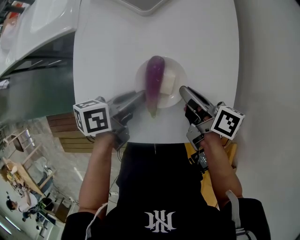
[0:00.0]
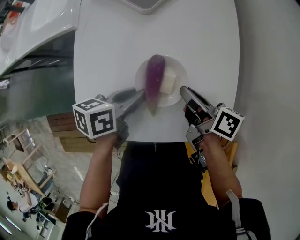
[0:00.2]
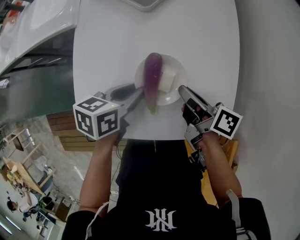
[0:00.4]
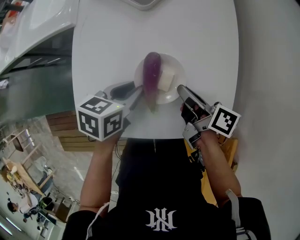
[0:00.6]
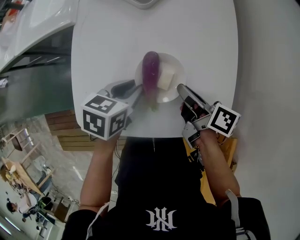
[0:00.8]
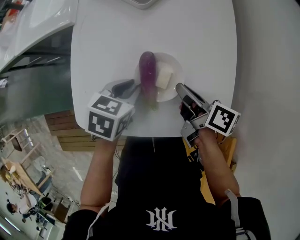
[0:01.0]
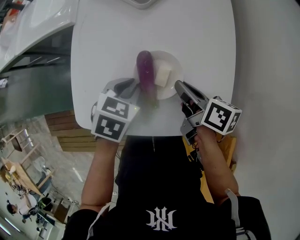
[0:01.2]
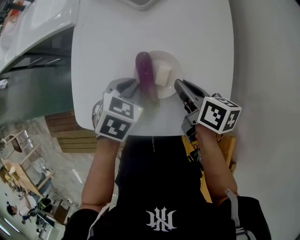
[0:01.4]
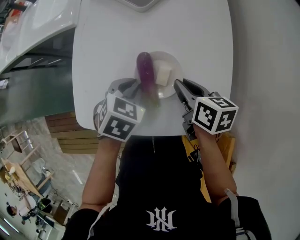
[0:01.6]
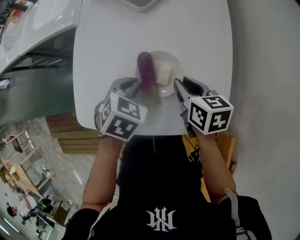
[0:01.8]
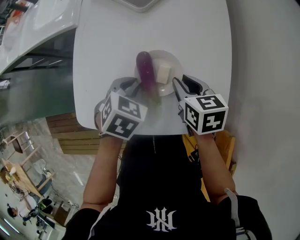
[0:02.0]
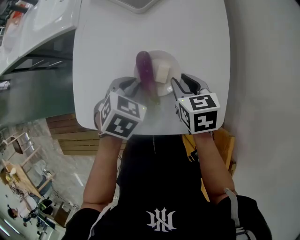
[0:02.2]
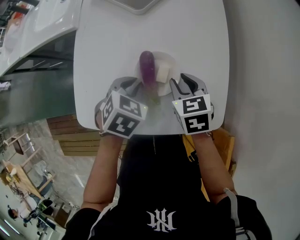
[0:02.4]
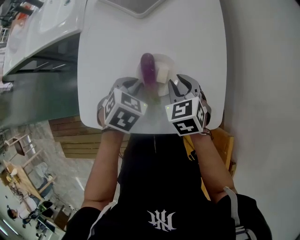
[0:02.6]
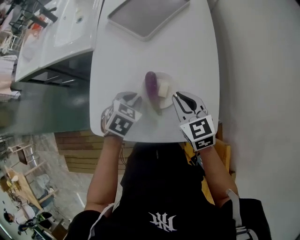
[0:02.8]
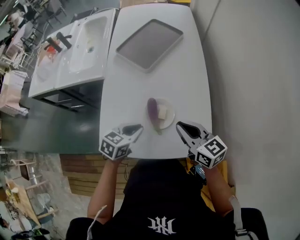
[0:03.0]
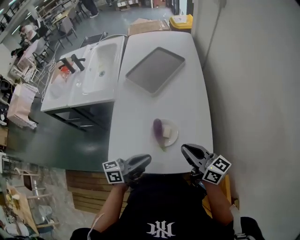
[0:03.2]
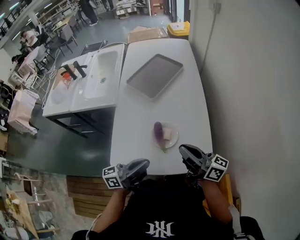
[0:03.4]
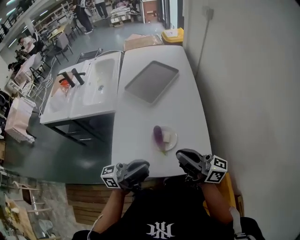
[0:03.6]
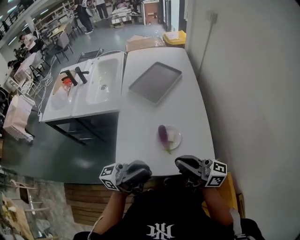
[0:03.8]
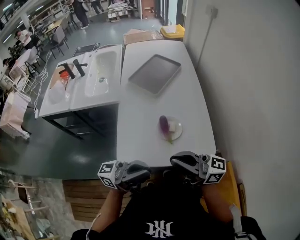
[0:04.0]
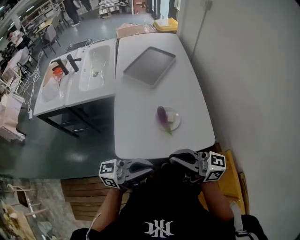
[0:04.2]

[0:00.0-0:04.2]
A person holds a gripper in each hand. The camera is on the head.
0:01.4 to 0:02.8: The right gripper heads upward, covering some 5 cm, and rotates around the line of its fingers by about 50 degrees, counterclockwise from behind.
0:02.8 to 0:04.2: The right gripper shifts approximately 25 cm upward, and angles its fingers upward, by roughly 50 degrees.

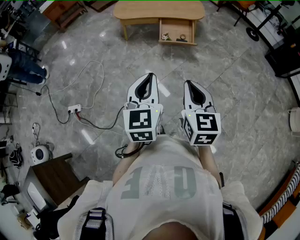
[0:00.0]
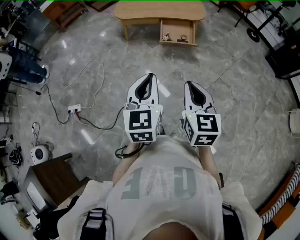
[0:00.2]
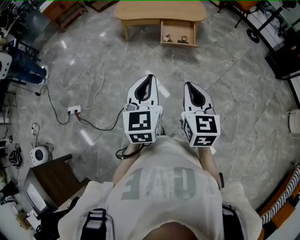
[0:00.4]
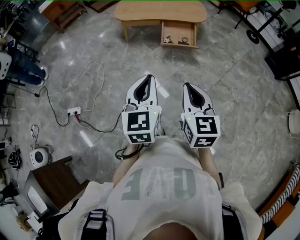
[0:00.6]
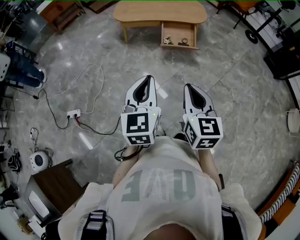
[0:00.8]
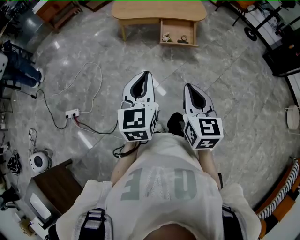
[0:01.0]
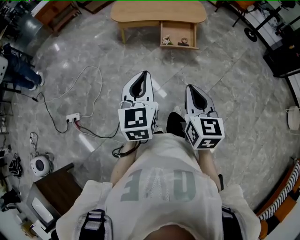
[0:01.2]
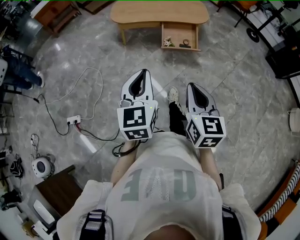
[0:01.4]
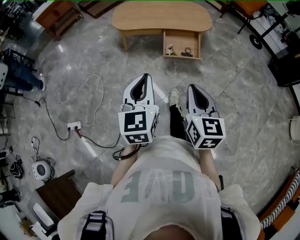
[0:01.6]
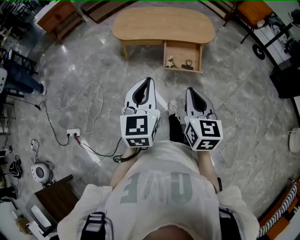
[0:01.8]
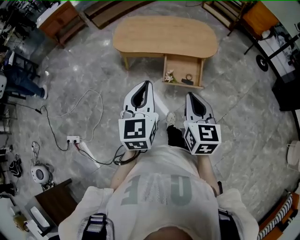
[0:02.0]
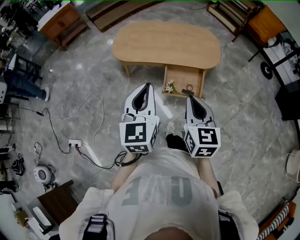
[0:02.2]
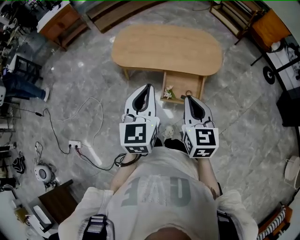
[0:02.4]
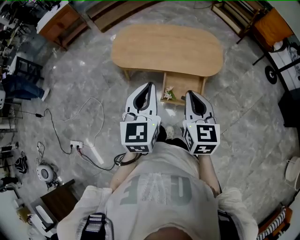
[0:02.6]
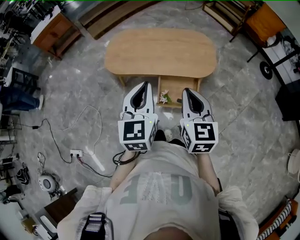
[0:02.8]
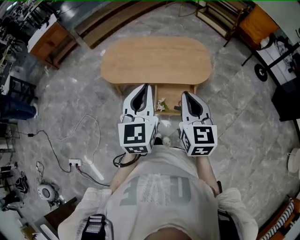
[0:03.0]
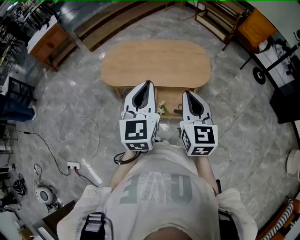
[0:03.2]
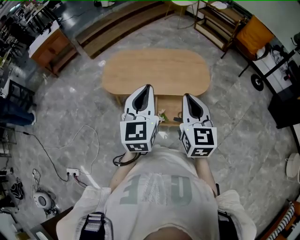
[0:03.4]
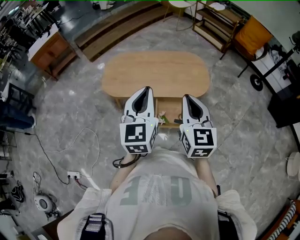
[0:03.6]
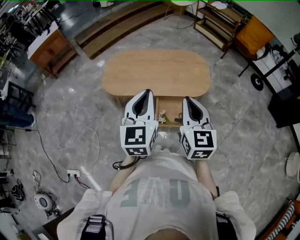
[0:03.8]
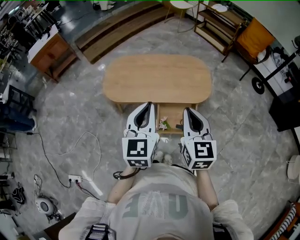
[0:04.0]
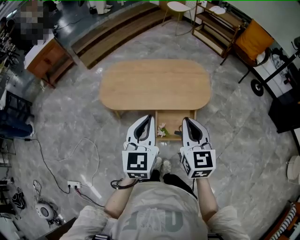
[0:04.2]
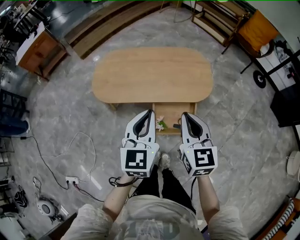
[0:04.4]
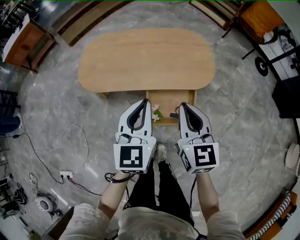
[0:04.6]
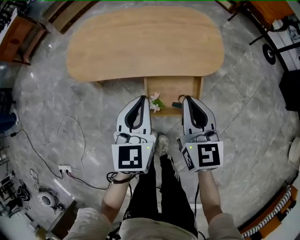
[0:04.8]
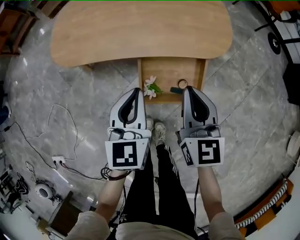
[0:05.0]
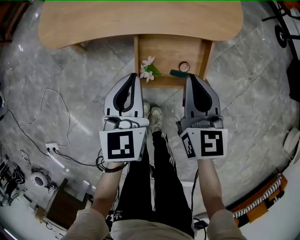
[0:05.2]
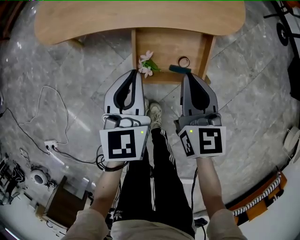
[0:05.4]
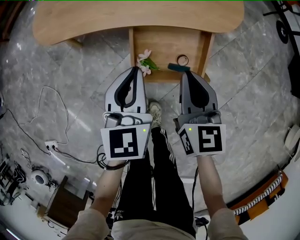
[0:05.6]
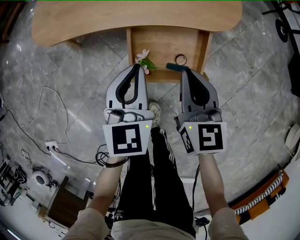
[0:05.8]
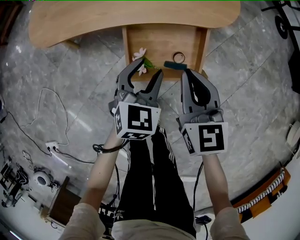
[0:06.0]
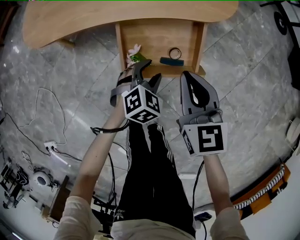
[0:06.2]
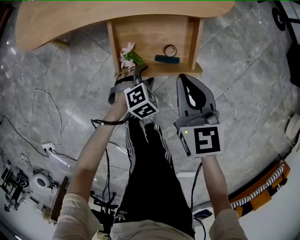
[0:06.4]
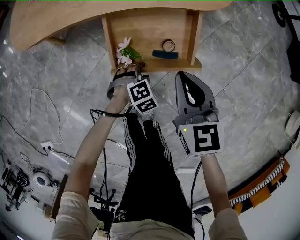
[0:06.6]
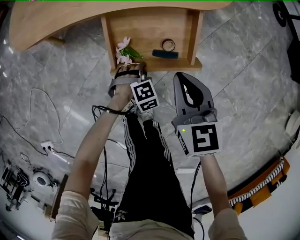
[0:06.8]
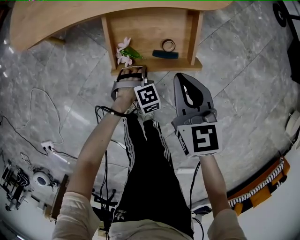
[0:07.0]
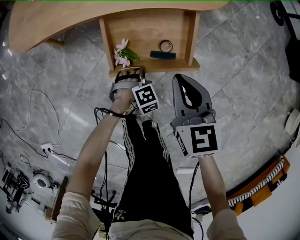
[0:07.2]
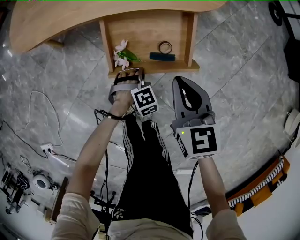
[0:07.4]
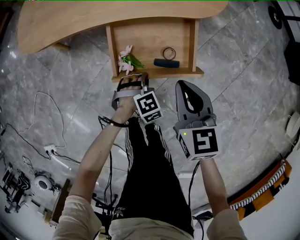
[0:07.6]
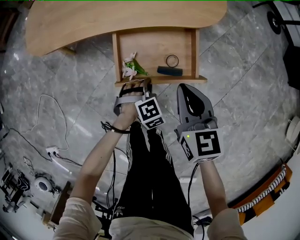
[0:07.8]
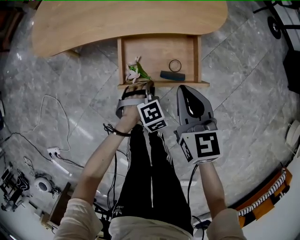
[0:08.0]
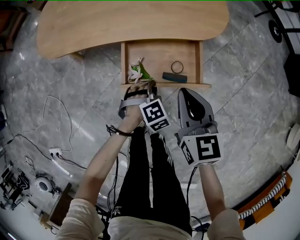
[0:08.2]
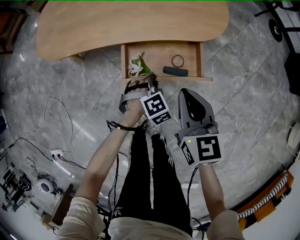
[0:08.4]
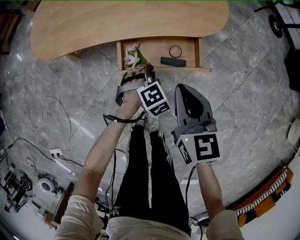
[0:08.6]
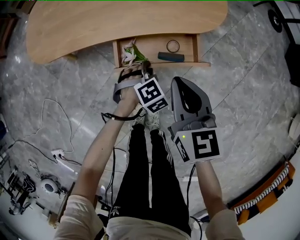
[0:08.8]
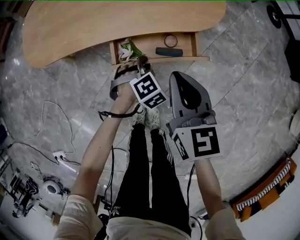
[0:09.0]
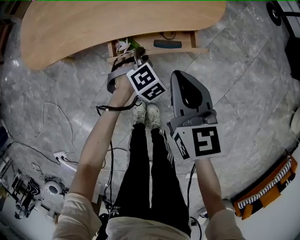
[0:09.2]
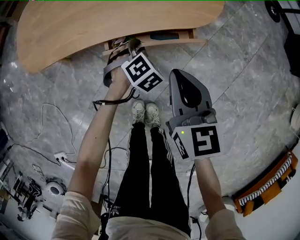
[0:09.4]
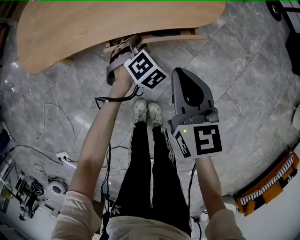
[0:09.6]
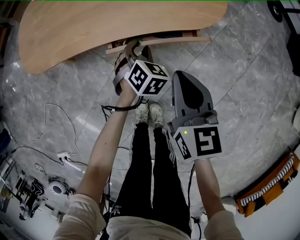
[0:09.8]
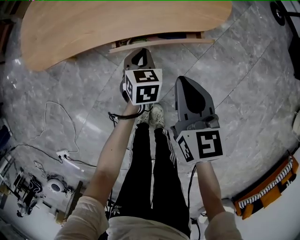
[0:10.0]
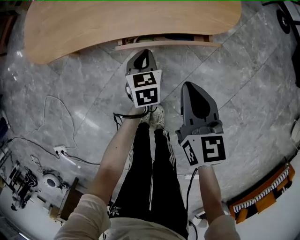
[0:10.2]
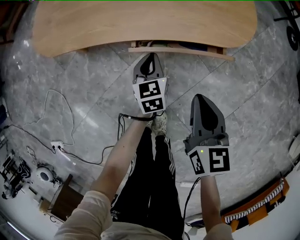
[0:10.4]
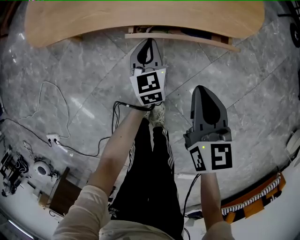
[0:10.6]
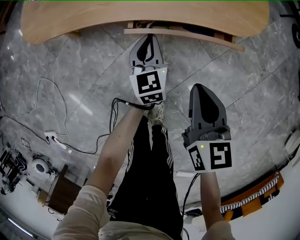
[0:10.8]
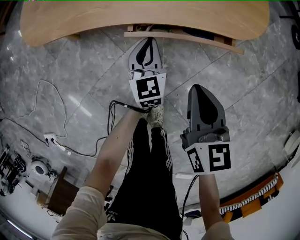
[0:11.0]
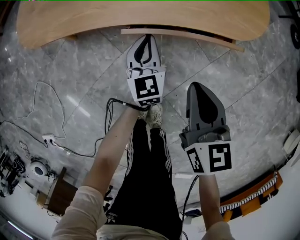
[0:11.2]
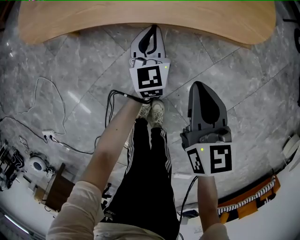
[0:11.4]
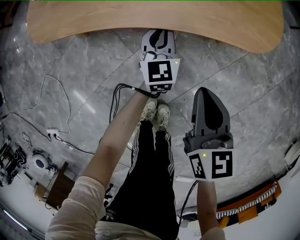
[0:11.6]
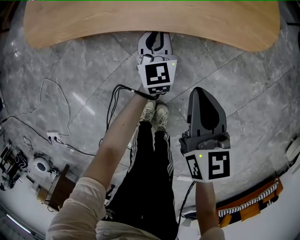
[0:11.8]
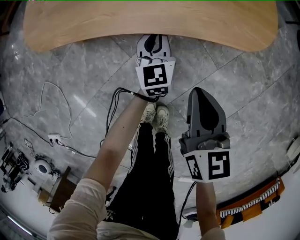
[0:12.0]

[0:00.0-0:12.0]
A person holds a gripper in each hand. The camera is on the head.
0:00.0 to 0:01.6: Both grippers move forward, some 20 cm.
0:01.6 to 0:03.0: The pair of grippers is taken forward, approximately 40 cm.
0:03.0 to 0:04.4: The left gripper shifts some 10 cm downward and forward, while the right gripper moves forward and downward, some 10 cm.
0:04.4 to 0:06.0: Both grippers travel together downward, some 35 cm. The left gripper rotates some 30 degrees, and opens up.
0:06.0 to 0:07.6: The left gripper goes approximately 20 cm downward, tilts its fingers about 30 degrees downward, and closes. Meanwhile the right gripper shifts by roughly 5 cm.
0:07.6 to 0:09.0: Both grippers travel together forward and upward, approximately 10 cm.
0:09.0 to 0:10.4: The left gripper shifts approximately 10 cm to the left and forward, and rolls counterclockwise, seen from behind, by some 70 degrees; the right gripper shifts roughly 5 cm downward.
0:10.4 to 0:12.0: The right gripper changes place by some 5 cm; the left gripper is displaced forward by some 5 cm.

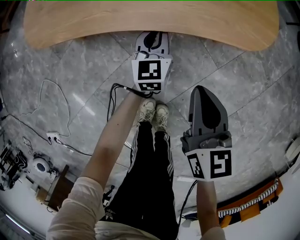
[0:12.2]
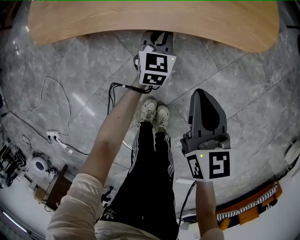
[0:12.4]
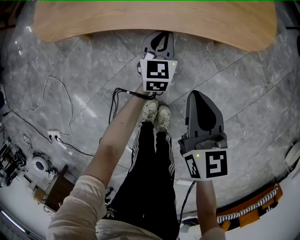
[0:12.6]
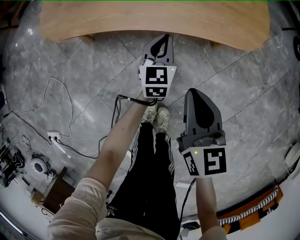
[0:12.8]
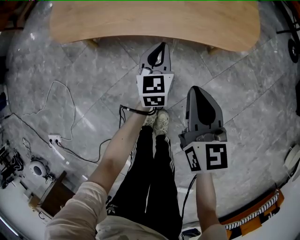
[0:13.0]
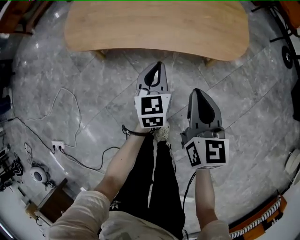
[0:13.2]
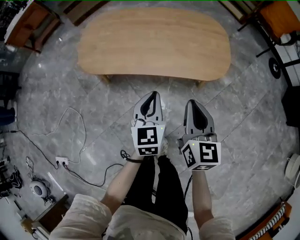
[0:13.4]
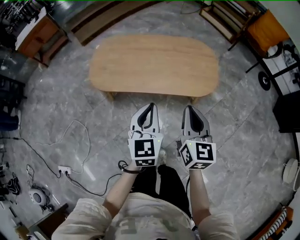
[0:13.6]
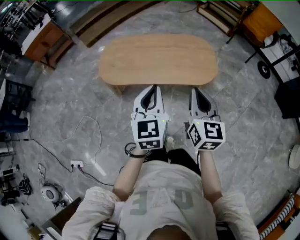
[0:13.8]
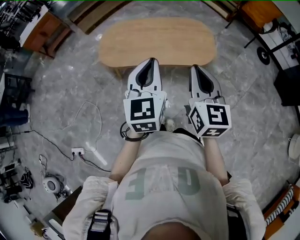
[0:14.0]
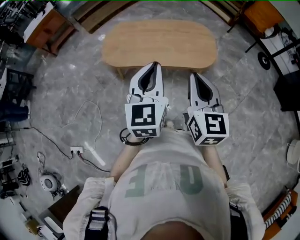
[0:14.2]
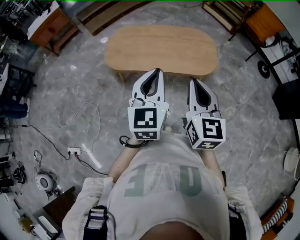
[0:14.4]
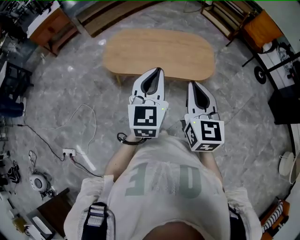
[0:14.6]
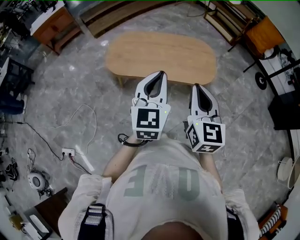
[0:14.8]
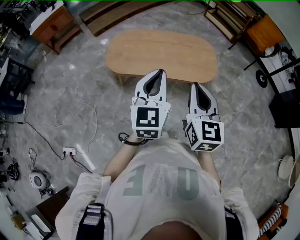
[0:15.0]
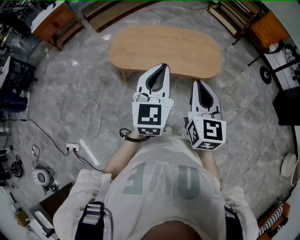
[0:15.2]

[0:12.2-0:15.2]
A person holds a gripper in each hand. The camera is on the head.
0:12.2 to 0:13.8: The two grippers go about 50 cm upward. The right gripper swivels some 20 degrees.
0:13.8 to 0:15.2: The left gripper moves upward, roughly 10 cm. Meanwhile the right gripper goes approximately 10 cm upward and backward.

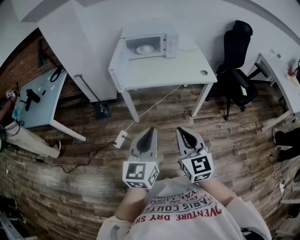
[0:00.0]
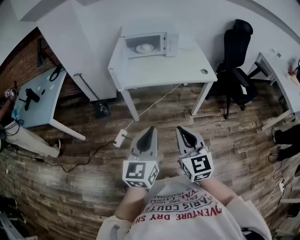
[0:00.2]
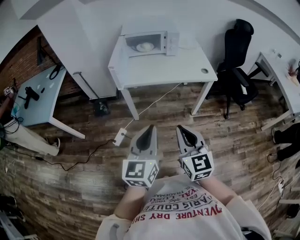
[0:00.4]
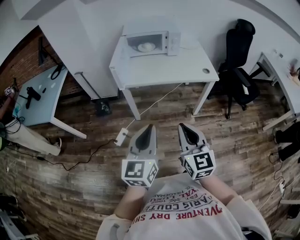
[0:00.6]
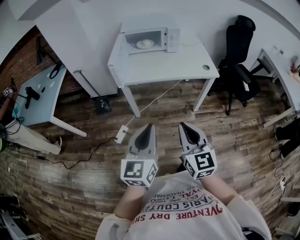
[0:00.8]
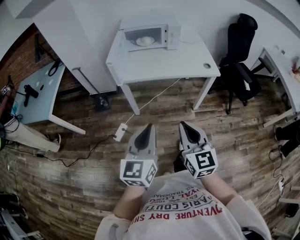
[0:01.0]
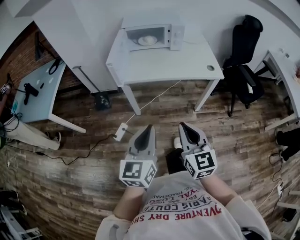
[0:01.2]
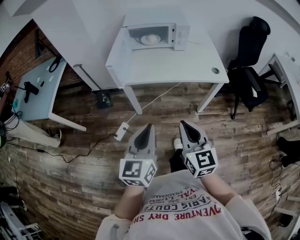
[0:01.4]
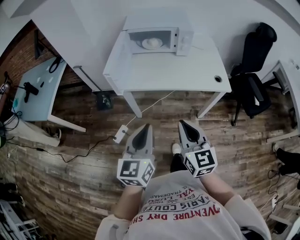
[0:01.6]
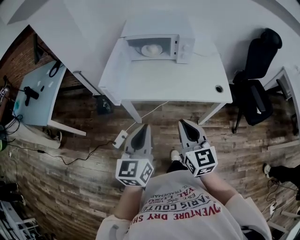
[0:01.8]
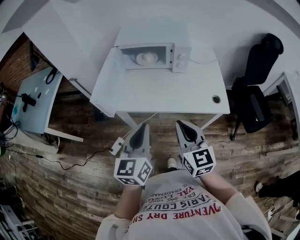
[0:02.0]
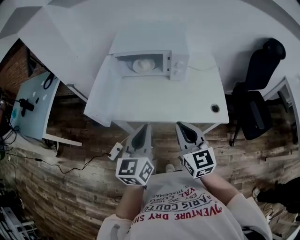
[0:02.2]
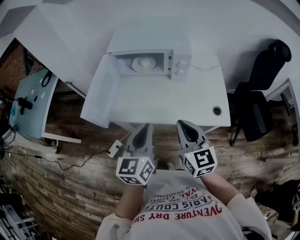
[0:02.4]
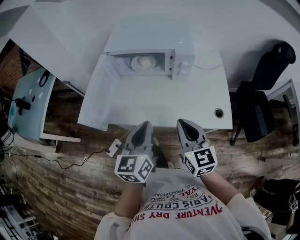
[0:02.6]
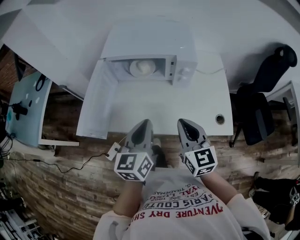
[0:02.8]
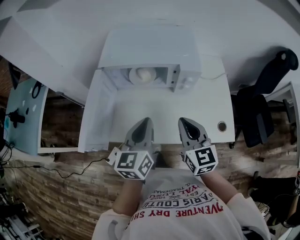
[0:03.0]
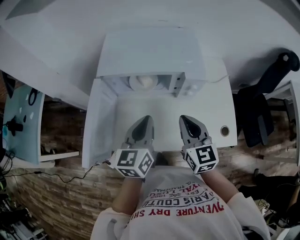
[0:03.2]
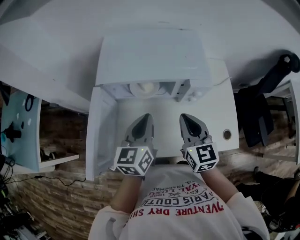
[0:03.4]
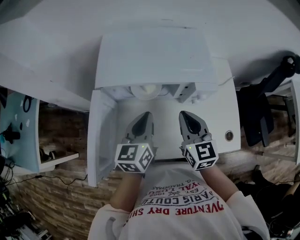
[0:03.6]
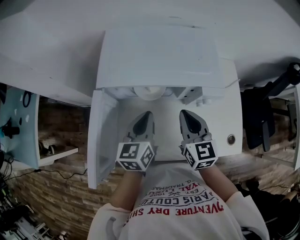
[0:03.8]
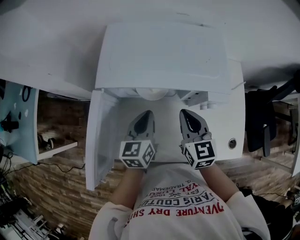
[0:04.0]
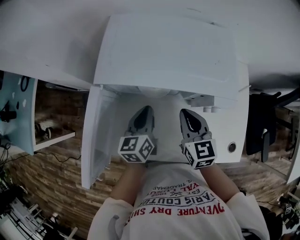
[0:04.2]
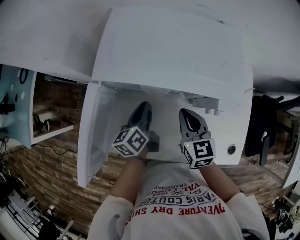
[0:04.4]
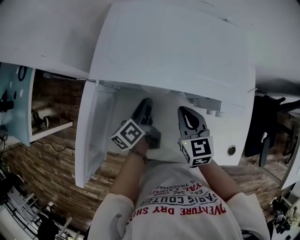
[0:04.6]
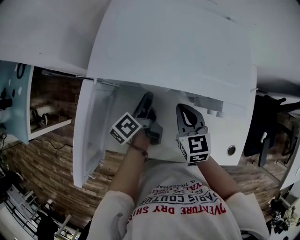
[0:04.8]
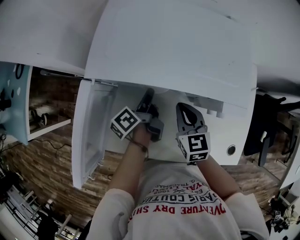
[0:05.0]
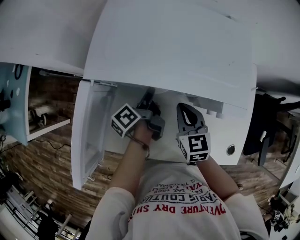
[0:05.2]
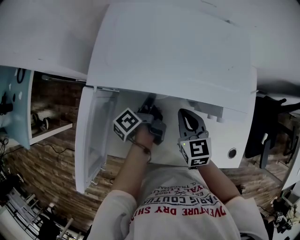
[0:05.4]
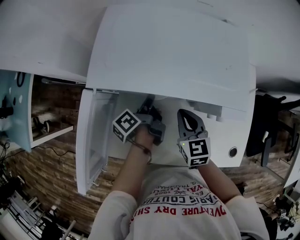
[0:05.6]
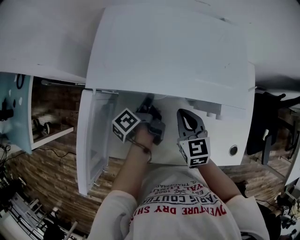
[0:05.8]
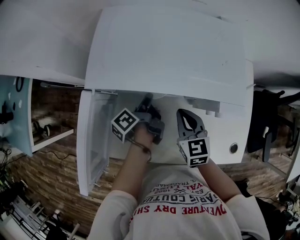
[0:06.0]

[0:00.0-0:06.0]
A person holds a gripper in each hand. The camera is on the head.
0:00.0 to 0:01.6: The two grippers go roughly 15 cm forward.
0:01.6 to 0:03.0: Both grippers travel together forward, approximately 40 cm.
0:03.0 to 0:04.4: The two grippers go roughly 25 cm forward and downward. The left gripper turns by about 30 degrees.
0:04.4 to 0:06.0: The left gripper changes place by approximately 5 cm, and rotates around the line of its fingers by about 40 degrees, counterclockwise from behind.
